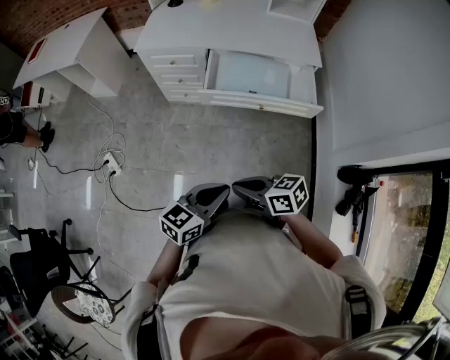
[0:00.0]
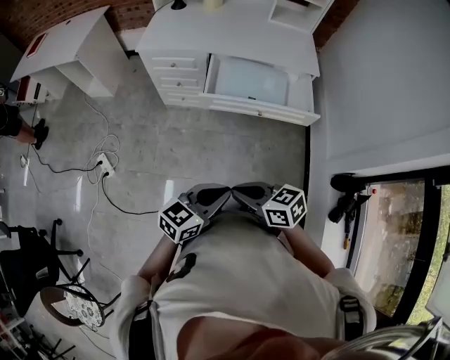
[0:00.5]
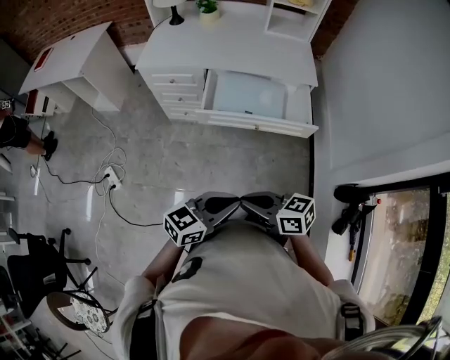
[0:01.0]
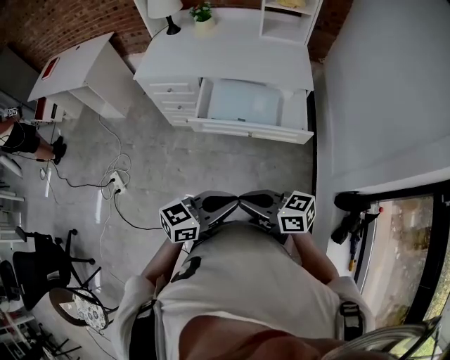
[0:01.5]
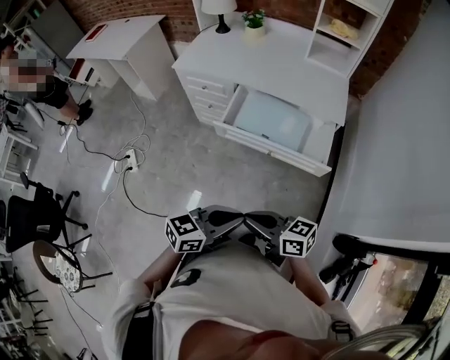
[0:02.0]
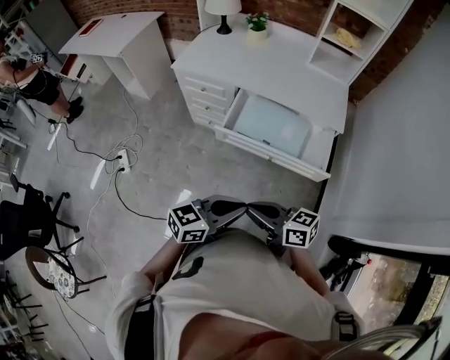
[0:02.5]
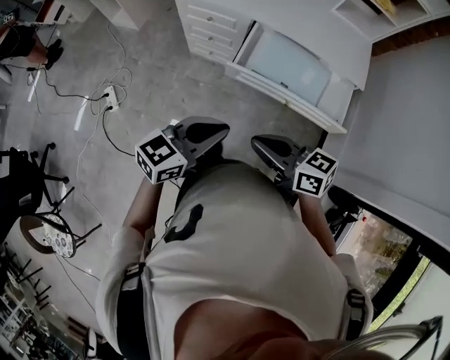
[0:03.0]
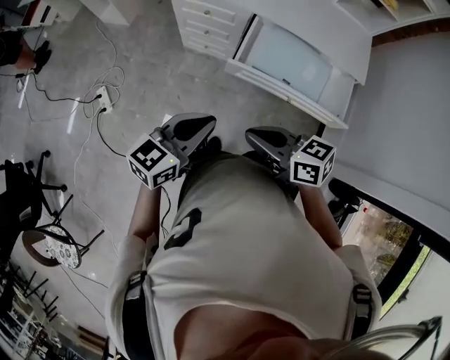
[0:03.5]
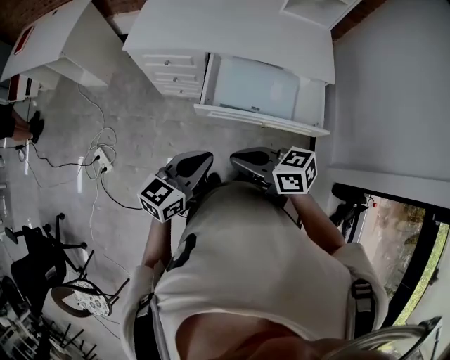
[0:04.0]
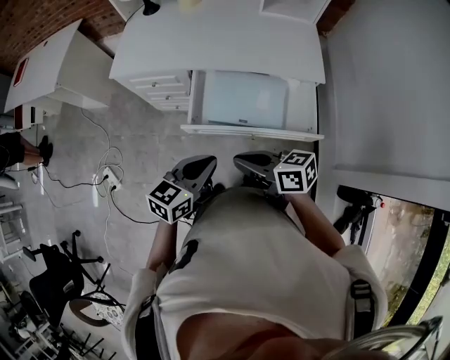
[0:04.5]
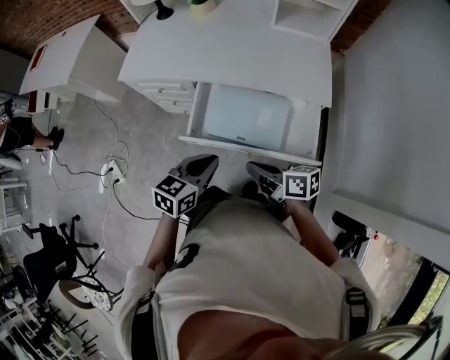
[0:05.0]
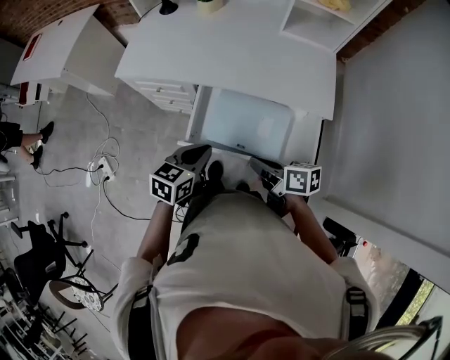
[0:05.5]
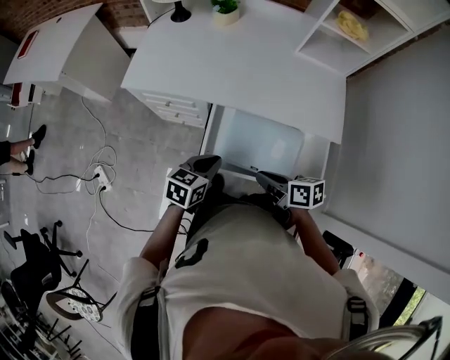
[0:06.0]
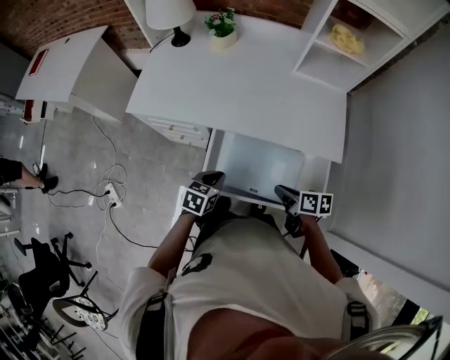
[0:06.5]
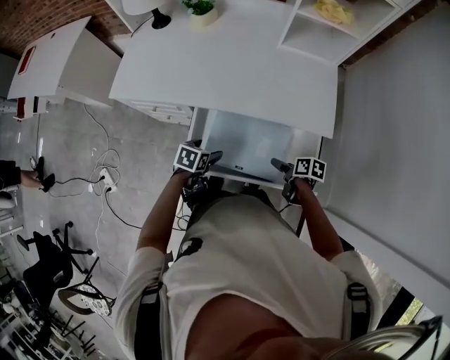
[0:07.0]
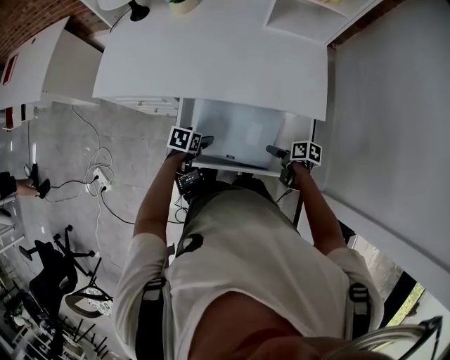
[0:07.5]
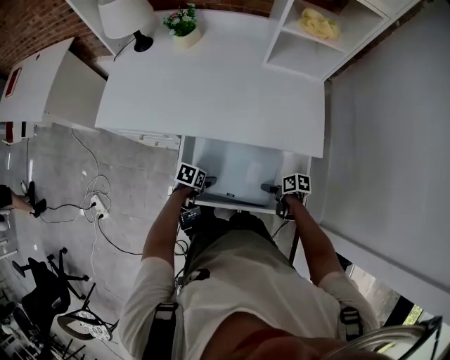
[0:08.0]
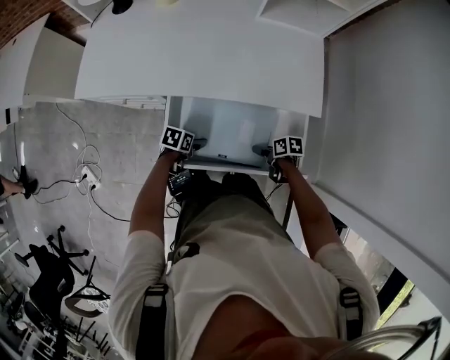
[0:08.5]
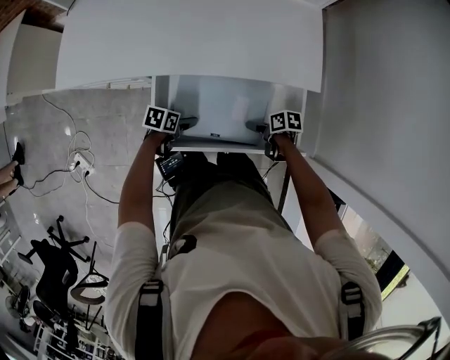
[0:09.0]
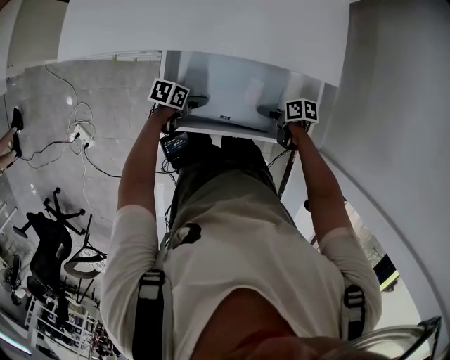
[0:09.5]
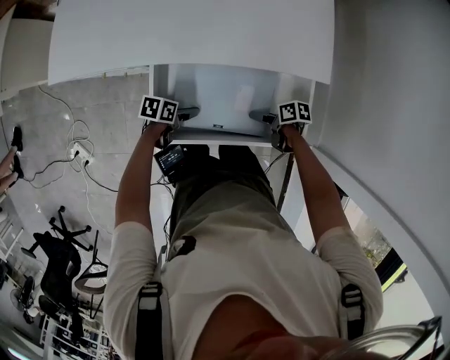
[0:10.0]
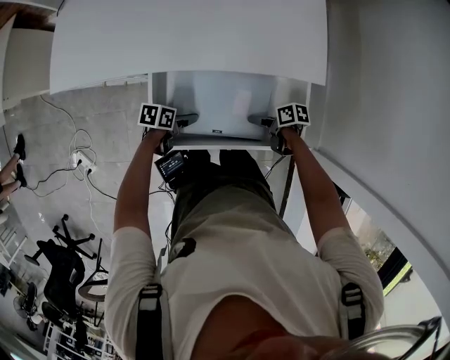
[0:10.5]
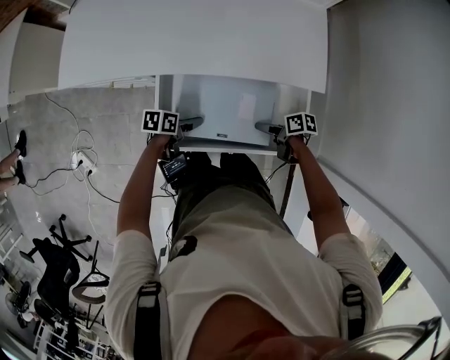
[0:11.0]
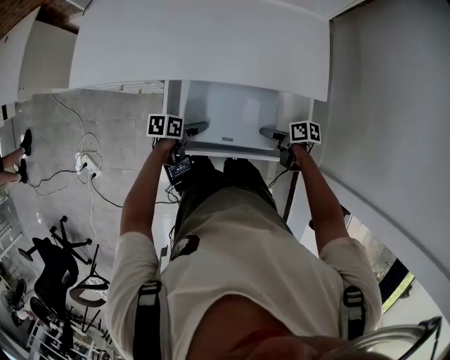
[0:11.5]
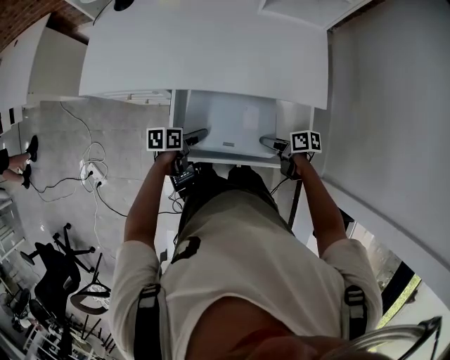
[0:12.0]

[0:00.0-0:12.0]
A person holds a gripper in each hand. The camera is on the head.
0:00.0 to 0:02.0: The left gripper changes place by approximately 15 cm. Meanwhile the right gripper ends up about 15 cm from where it was.
0:02.0 to 0:04.0: The right gripper shifts by about 20 cm. Meanwhile the left gripper moves approximately 25 cm.
0:04.0 to 0:06.0: The right gripper travels forward, to the right and downward by some 25 cm, and turns by some 30 degrees; the left gripper travels forward and downward by roughly 25 cm, and changes its angle by roughly 20 degrees.
0:06.0 to 0:08.0: Both grippers move downward, some 20 cm. The right gripper swivels some 30 degrees, and opens. Meanwhile the left gripper swivels roughly 30 degrees, and opens.
0:08.0 to 0:10.0: The grippers stay close to where they were, moving slightly.
0:10.0 to 0:12.0: Both grippers travel together upward, roughly 10 cm.

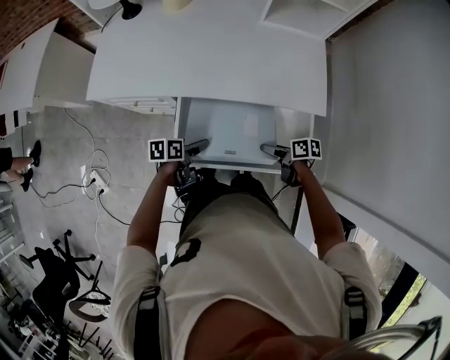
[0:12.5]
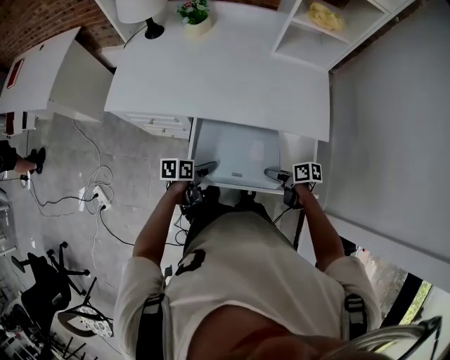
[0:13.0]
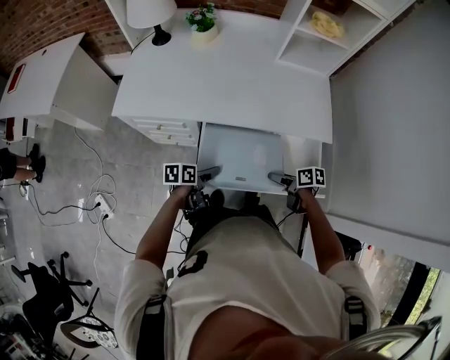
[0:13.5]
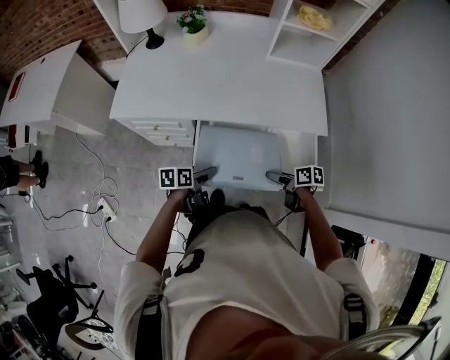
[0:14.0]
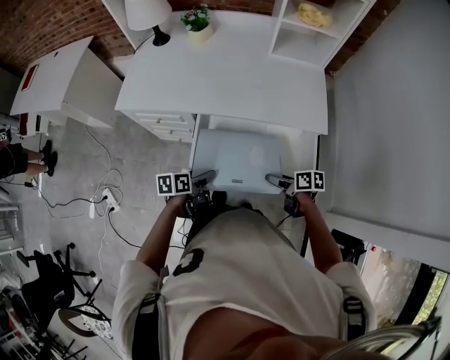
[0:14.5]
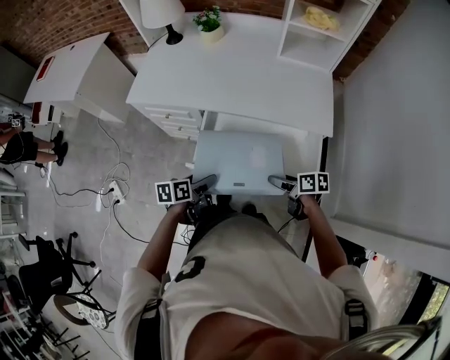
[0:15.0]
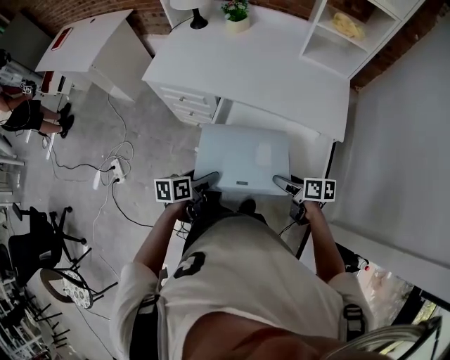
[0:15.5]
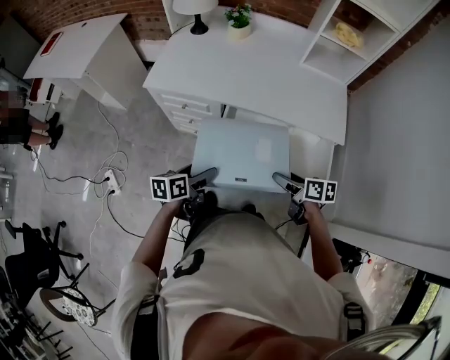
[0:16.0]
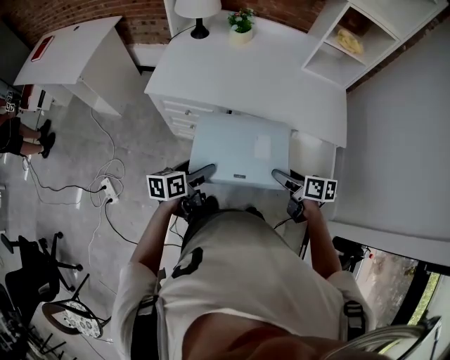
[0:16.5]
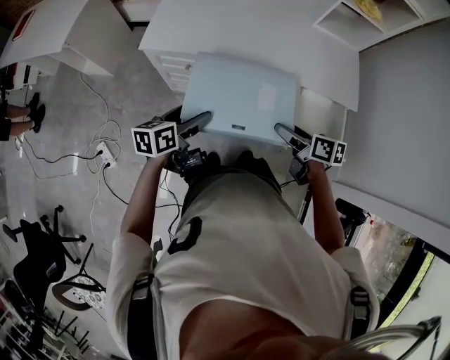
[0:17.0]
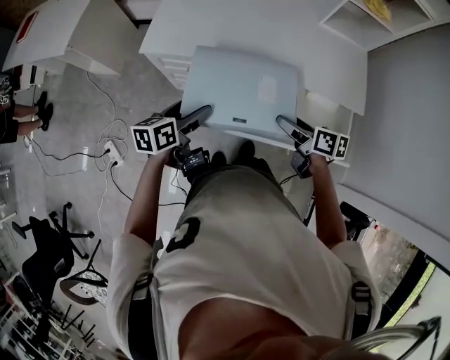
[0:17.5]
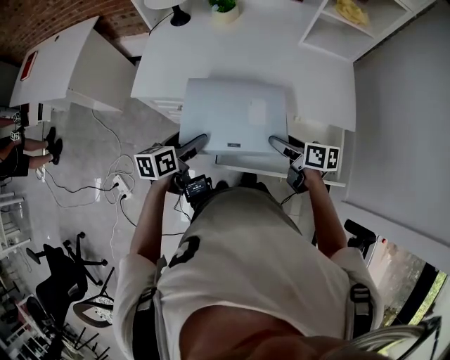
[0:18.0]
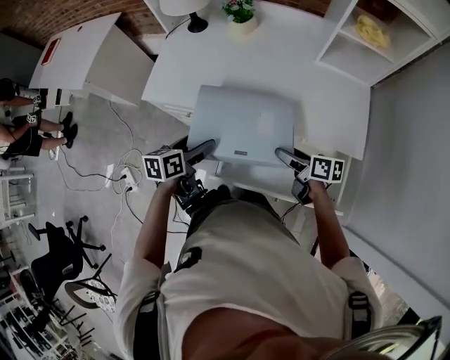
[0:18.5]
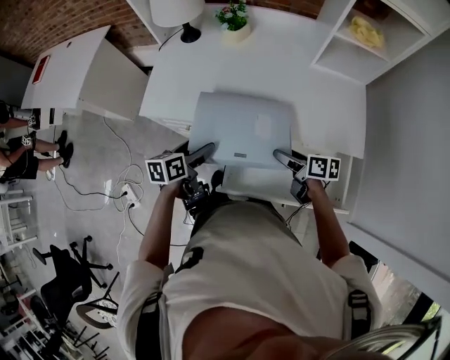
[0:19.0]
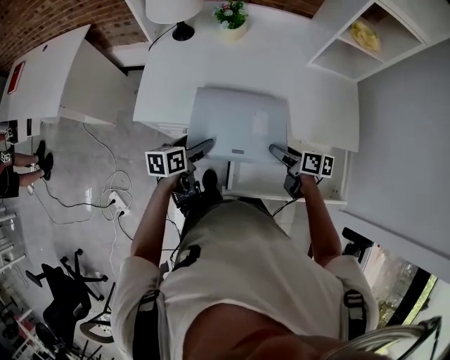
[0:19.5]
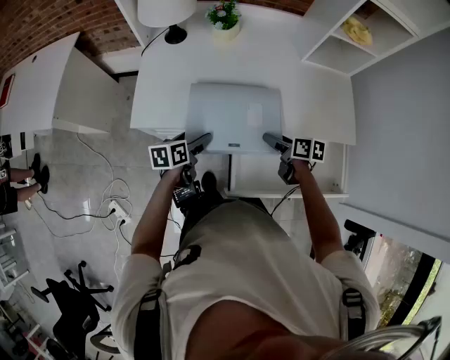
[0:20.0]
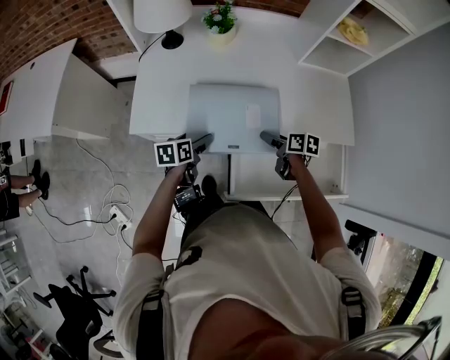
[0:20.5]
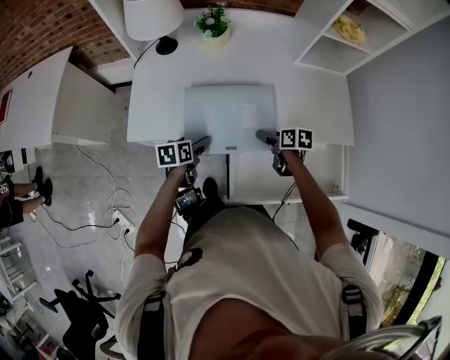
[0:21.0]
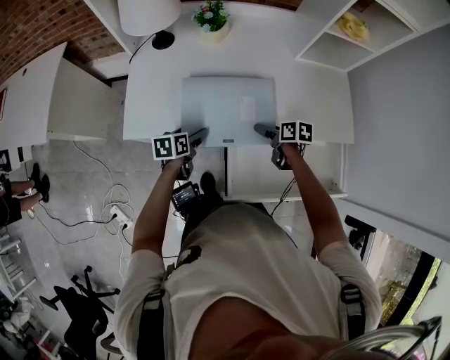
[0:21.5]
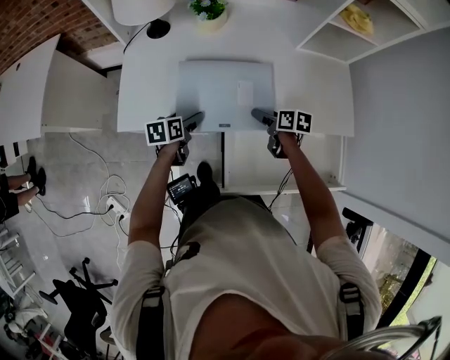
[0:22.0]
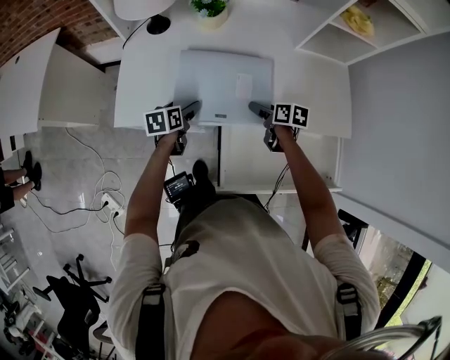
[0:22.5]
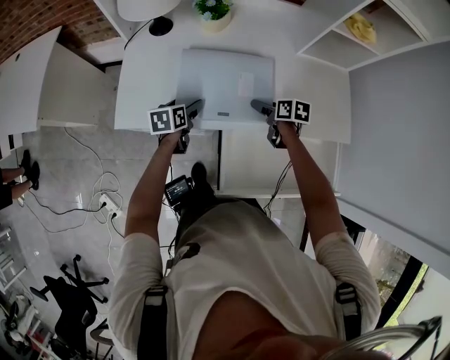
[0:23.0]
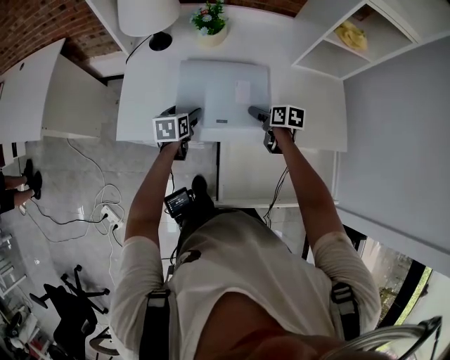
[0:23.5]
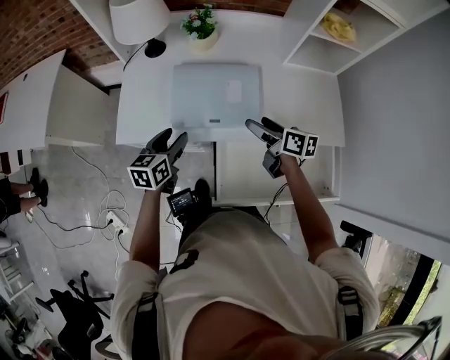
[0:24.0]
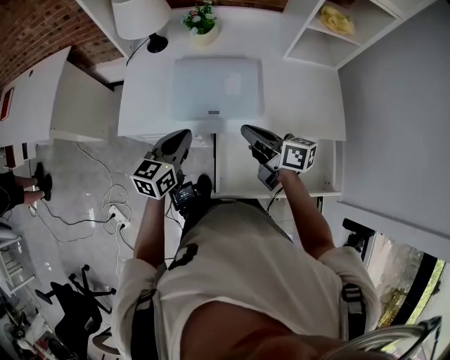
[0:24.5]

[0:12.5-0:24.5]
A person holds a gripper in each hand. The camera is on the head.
0:12.5 to 0:14.5: The two grippers go approximately 10 cm backward and upward.
0:14.5 to 0:16.5: Both grippers travel together to the left and upward, about 15 cm.
0:16.5 to 0:18.5: The two grippers go some 15 cm forward.
0:18.5 to 0:20.5: The left gripper heads forward, downward and to the left, covering some 15 cm; the right gripper is displaced forward, to the left and downward by some 15 cm, and swivels about 20 degrees.
0:20.5 to 0:22.5: The two grippers go roughly 10 cm forward.
0:22.5 to 0:24.5: Both grippers move upward and backward, approximately 20 cm. The right gripper tilts its fingers approximately 40 degrees upward, and closes up; the left gripper turns by roughly 30 degrees, and closes its fingers.

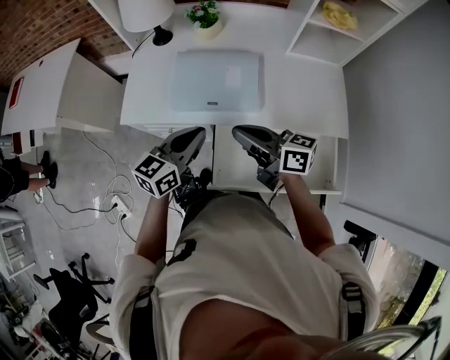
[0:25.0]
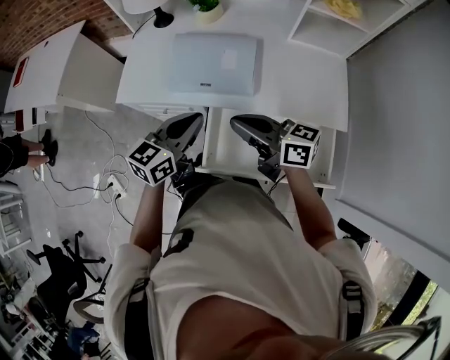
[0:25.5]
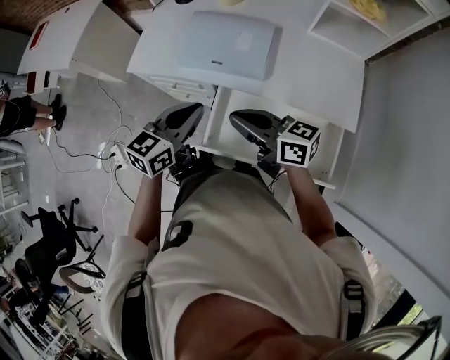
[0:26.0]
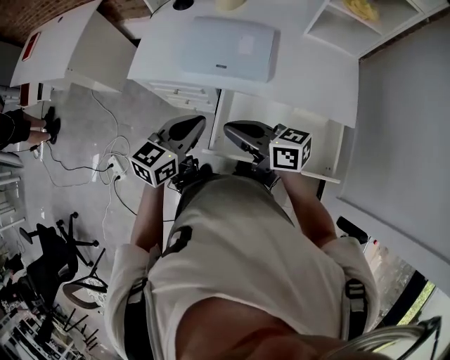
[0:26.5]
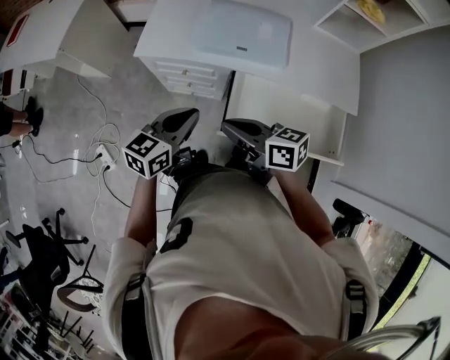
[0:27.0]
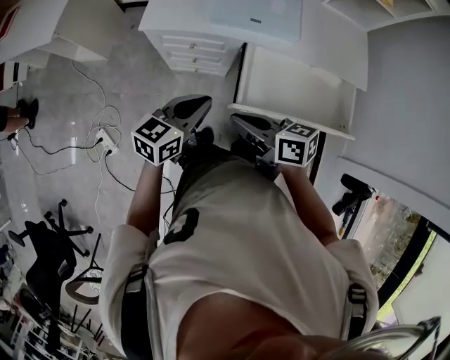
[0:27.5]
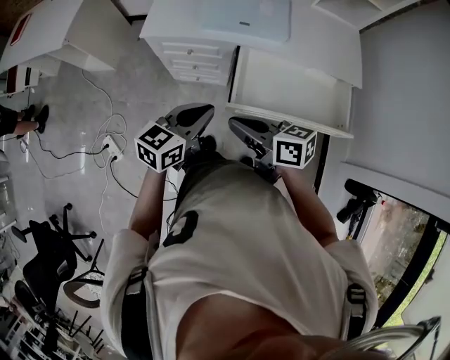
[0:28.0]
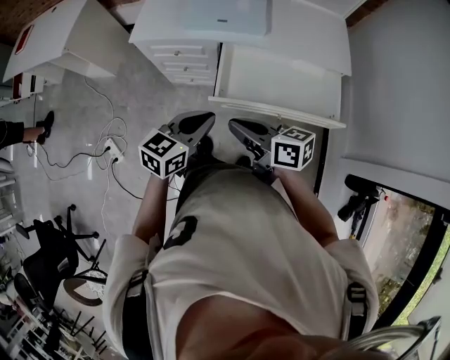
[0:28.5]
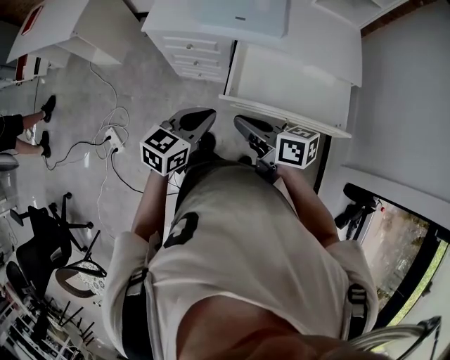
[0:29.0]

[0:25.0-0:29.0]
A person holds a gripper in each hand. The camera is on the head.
0:25.0 to 0:27.0: The grippers both shift to the left and backward by about 20 cm.
0:27.0 to 0:29.0: Both grippers move backward, approximately 15 cm.
